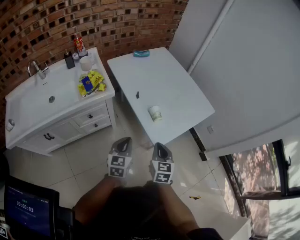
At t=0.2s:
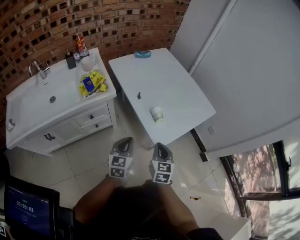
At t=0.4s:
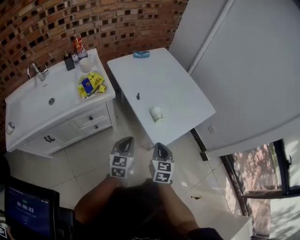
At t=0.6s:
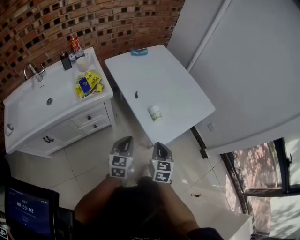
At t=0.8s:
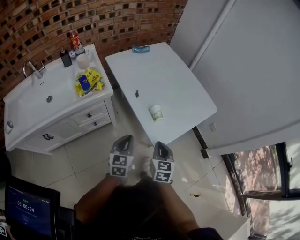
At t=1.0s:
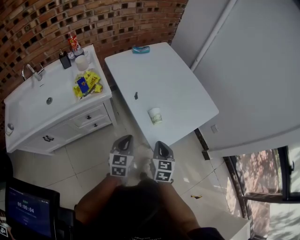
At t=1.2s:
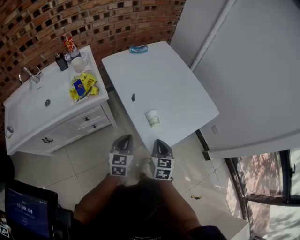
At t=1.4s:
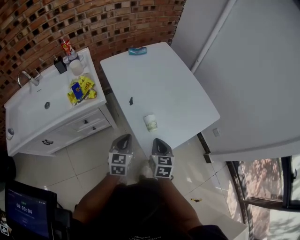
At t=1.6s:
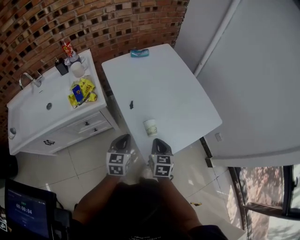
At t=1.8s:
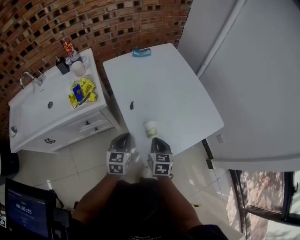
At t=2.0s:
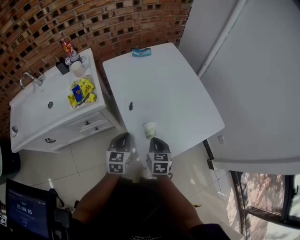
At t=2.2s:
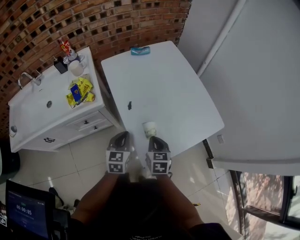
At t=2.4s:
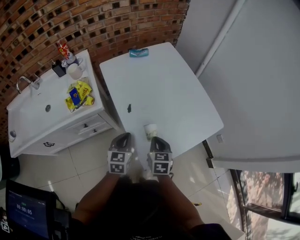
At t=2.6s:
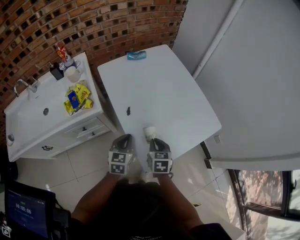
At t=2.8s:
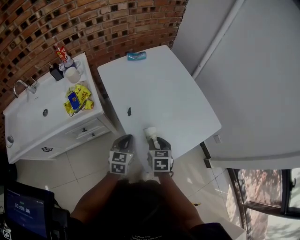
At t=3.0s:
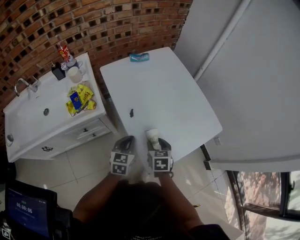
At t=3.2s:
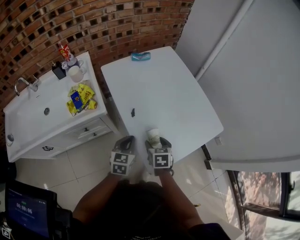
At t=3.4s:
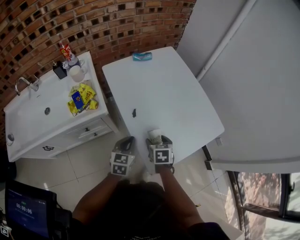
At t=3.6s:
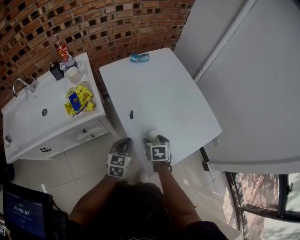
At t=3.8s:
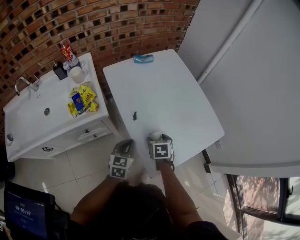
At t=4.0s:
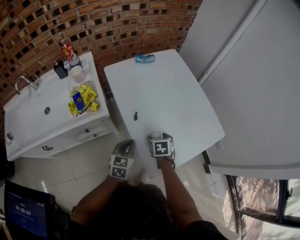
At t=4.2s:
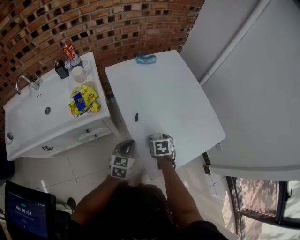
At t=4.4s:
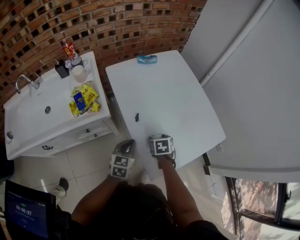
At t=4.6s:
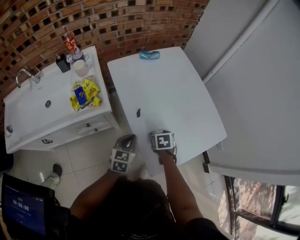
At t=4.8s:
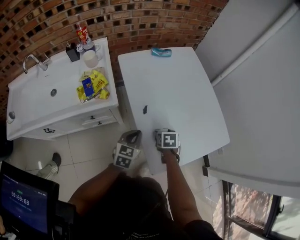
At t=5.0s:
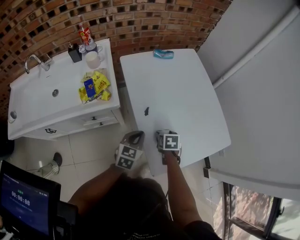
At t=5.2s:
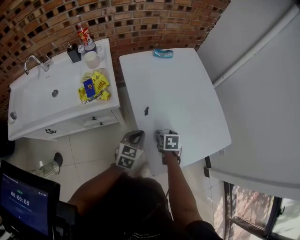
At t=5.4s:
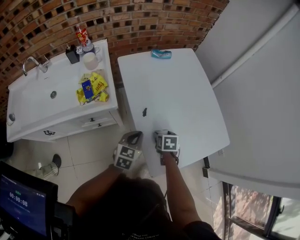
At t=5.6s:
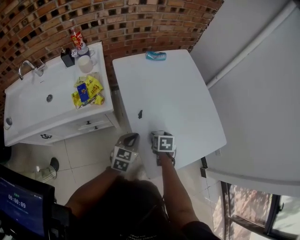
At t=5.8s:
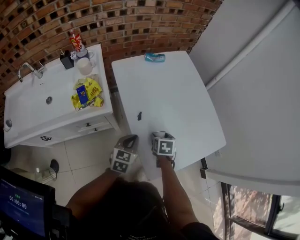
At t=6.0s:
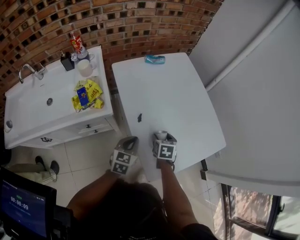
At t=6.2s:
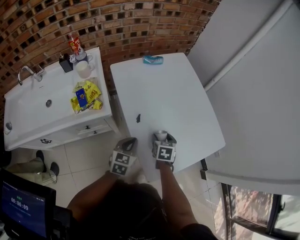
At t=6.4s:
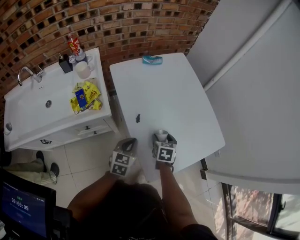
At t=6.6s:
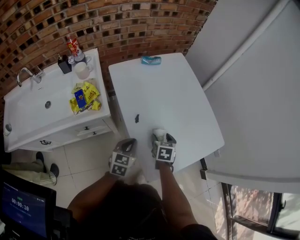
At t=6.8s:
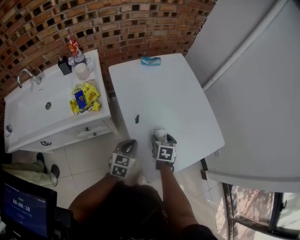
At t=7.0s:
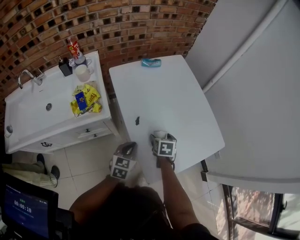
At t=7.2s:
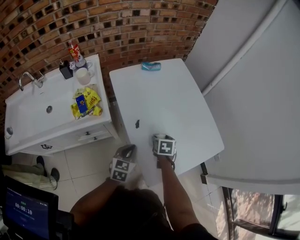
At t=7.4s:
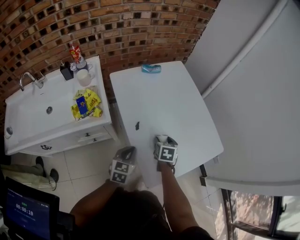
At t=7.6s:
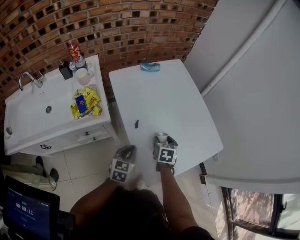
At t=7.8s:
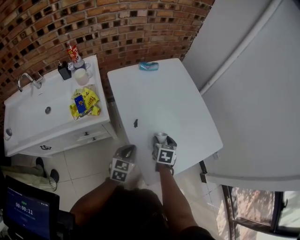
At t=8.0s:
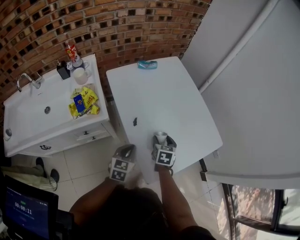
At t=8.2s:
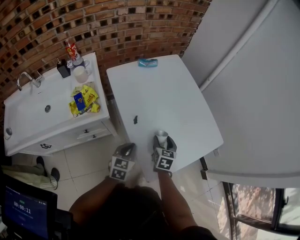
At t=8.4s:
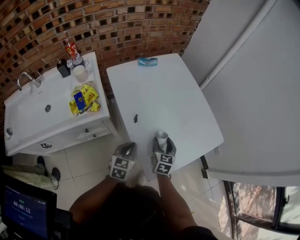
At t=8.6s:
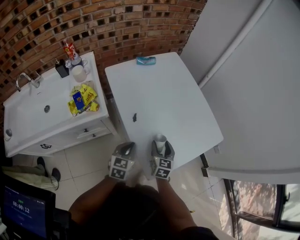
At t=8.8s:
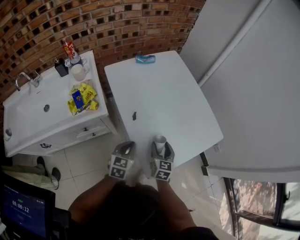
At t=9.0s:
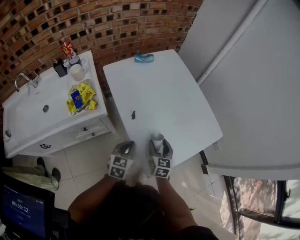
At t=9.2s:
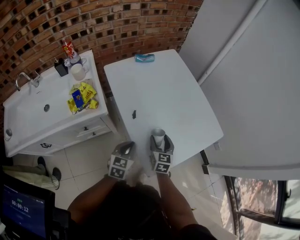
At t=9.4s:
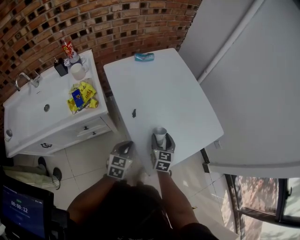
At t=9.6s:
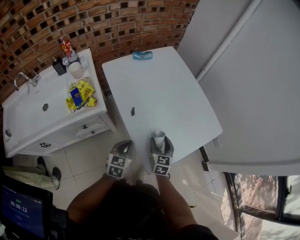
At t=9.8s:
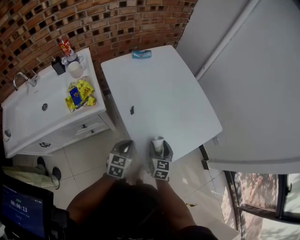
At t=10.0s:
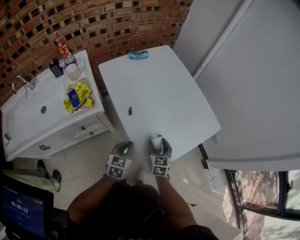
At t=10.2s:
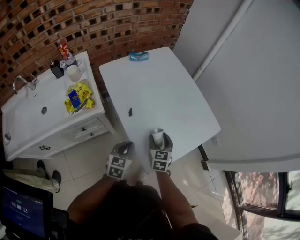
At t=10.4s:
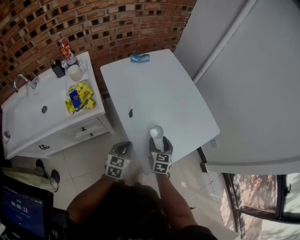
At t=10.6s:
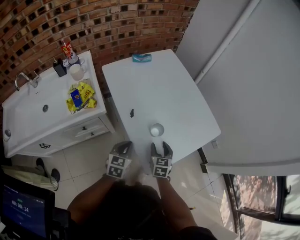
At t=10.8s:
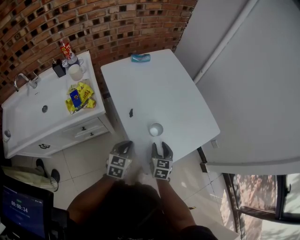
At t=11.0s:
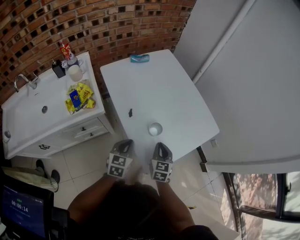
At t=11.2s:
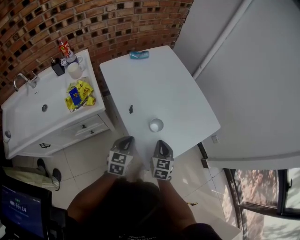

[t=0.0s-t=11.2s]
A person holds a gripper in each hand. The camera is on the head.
t=0.0s to t=1.6s: The two grippers go roughly 15 cm forward.
t=1.6s to t=3.2s: The left gripper changes place by about 5 cm. The right gripper shifts some 5 cm forward, and opens up.
t=3.2s to t=4.8s: The right gripper shifts by roughly 5 cm.
t=4.8s to t=6.4s: The right gripper shifts by some 5 cm, and rotates approximately 20 degrees.
t=6.4s to t=8.0s: The grippers move only a little.
t=8.0s to t=9.6s: The right gripper is displaced backward by about 5 cm.
t=9.6s to t=11.2s: The right gripper closes its fingers.

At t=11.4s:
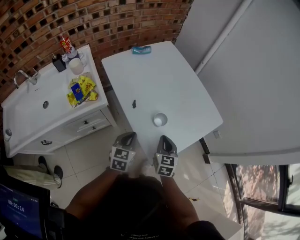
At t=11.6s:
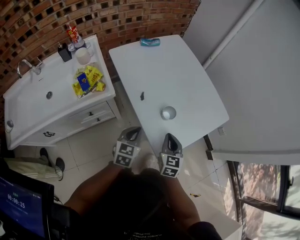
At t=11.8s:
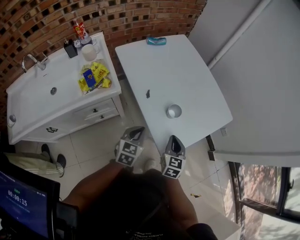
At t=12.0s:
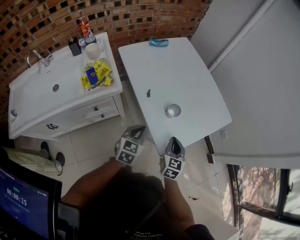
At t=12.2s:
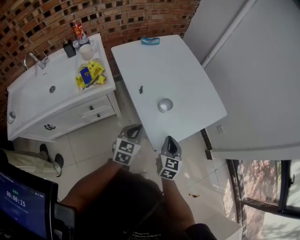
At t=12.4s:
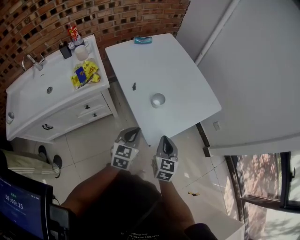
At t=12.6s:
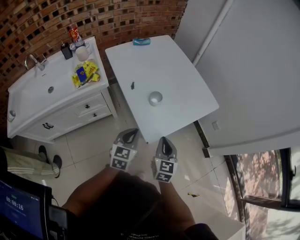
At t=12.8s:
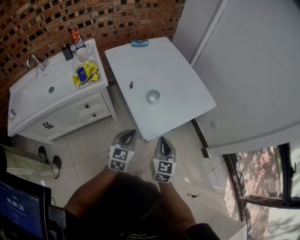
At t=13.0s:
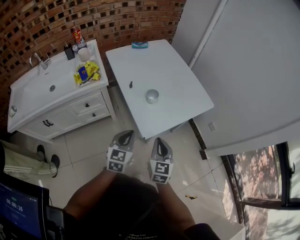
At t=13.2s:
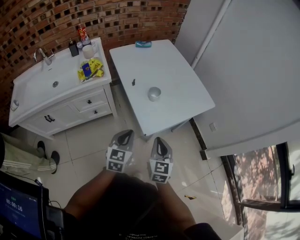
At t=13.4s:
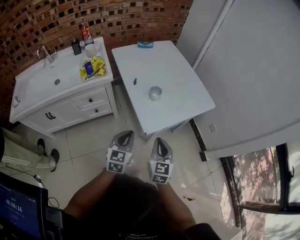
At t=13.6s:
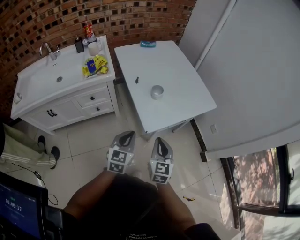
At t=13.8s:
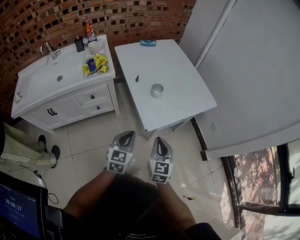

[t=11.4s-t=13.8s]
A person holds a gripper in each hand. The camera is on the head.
t=11.4s to t=12.6s: The grippers both shift backward and to the right by some 15 cm.
t=12.6s to t=13.8s: The grippers both shift backward by some 10 cm.

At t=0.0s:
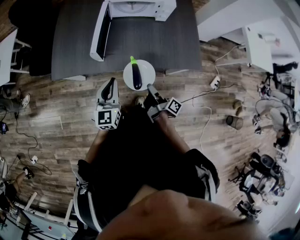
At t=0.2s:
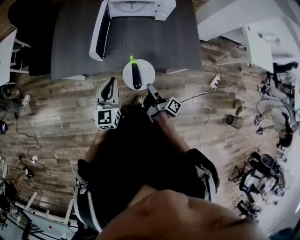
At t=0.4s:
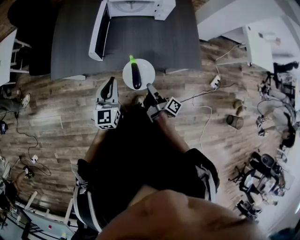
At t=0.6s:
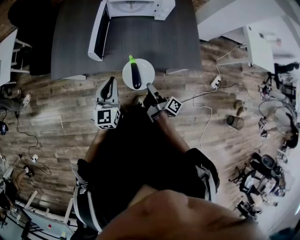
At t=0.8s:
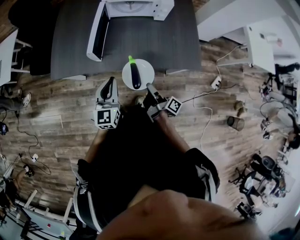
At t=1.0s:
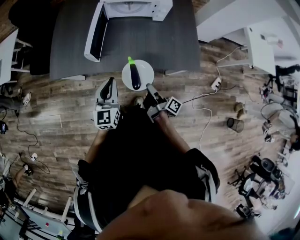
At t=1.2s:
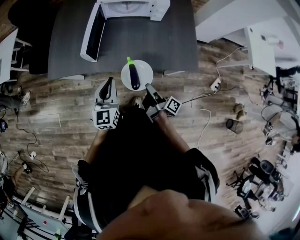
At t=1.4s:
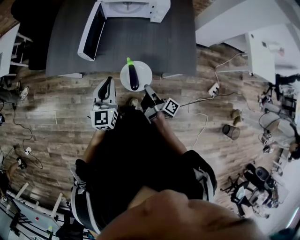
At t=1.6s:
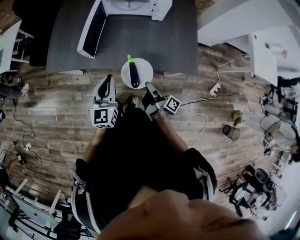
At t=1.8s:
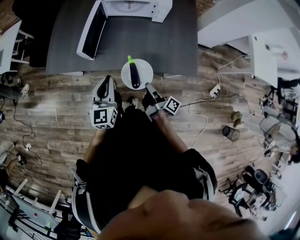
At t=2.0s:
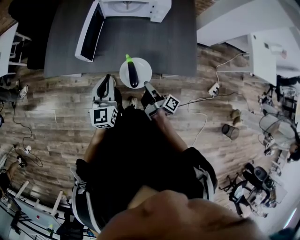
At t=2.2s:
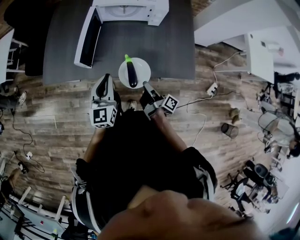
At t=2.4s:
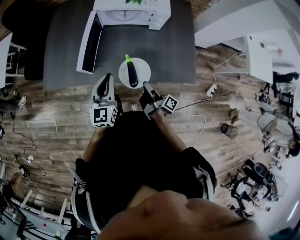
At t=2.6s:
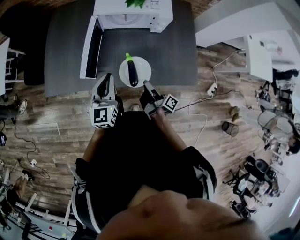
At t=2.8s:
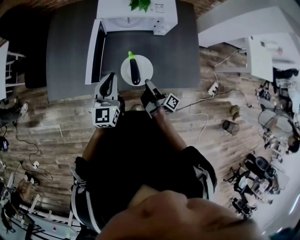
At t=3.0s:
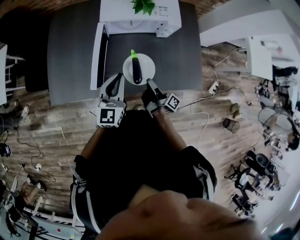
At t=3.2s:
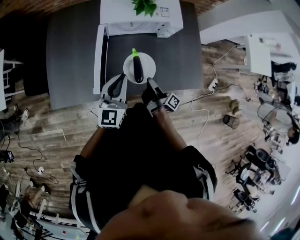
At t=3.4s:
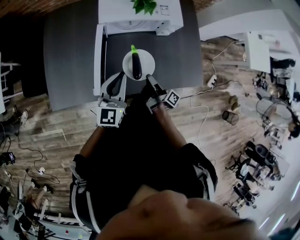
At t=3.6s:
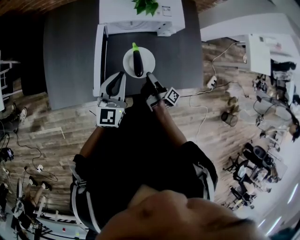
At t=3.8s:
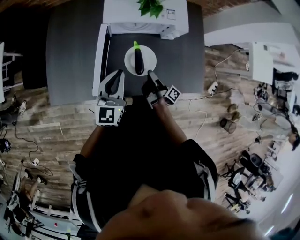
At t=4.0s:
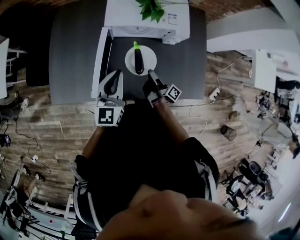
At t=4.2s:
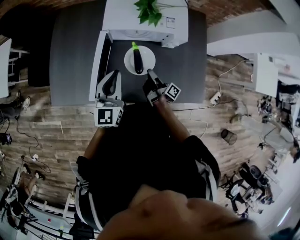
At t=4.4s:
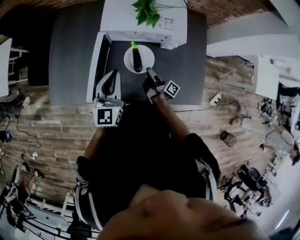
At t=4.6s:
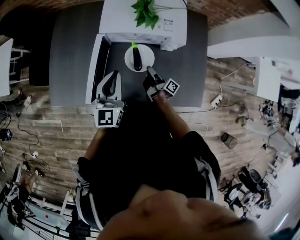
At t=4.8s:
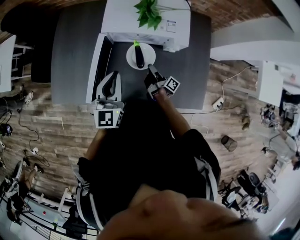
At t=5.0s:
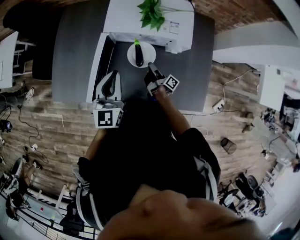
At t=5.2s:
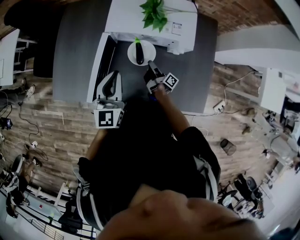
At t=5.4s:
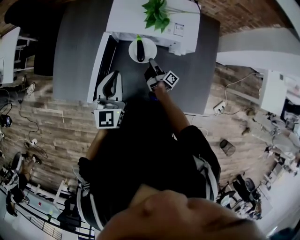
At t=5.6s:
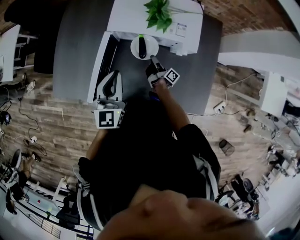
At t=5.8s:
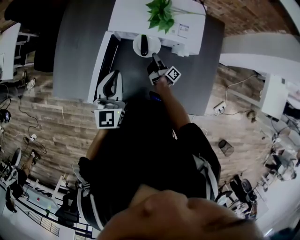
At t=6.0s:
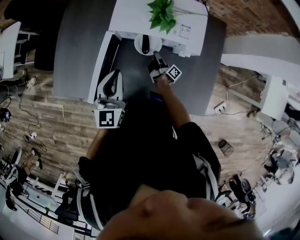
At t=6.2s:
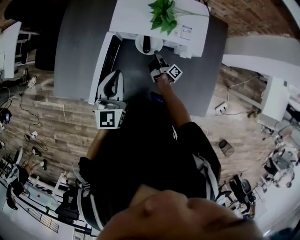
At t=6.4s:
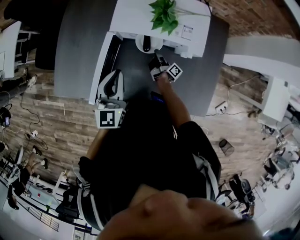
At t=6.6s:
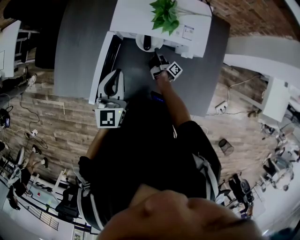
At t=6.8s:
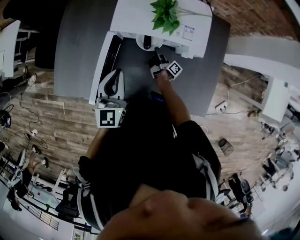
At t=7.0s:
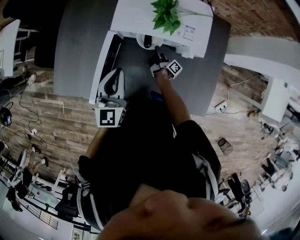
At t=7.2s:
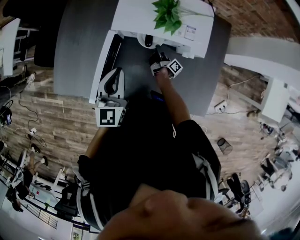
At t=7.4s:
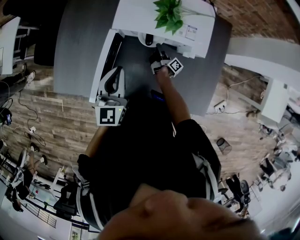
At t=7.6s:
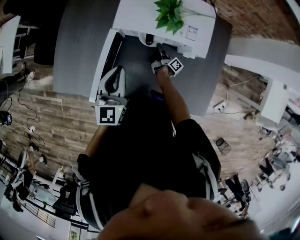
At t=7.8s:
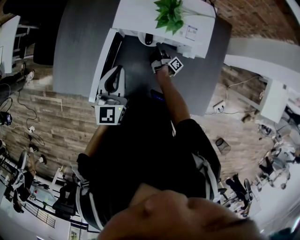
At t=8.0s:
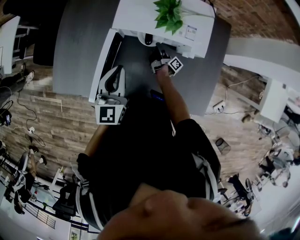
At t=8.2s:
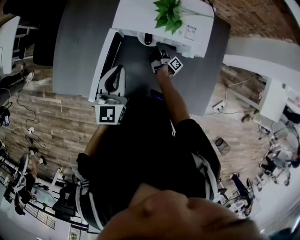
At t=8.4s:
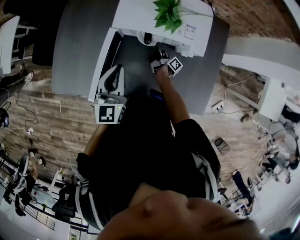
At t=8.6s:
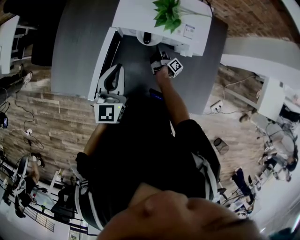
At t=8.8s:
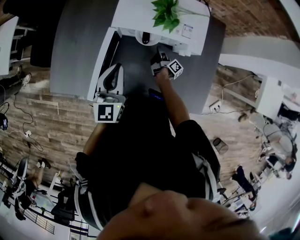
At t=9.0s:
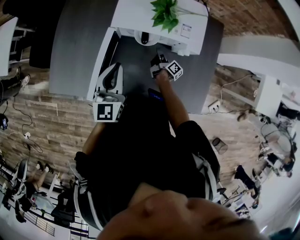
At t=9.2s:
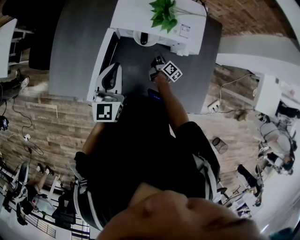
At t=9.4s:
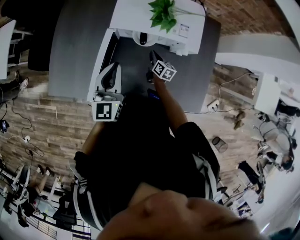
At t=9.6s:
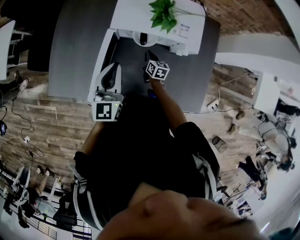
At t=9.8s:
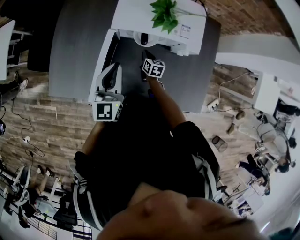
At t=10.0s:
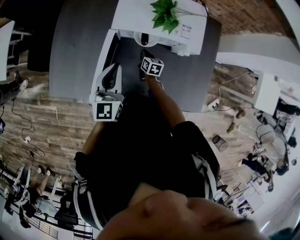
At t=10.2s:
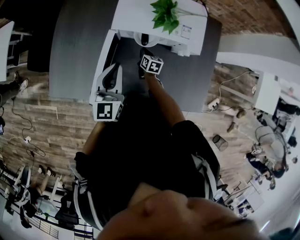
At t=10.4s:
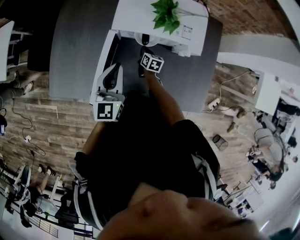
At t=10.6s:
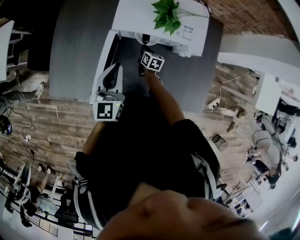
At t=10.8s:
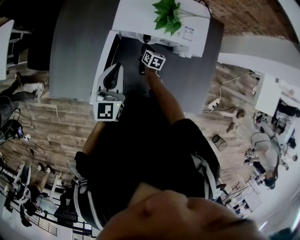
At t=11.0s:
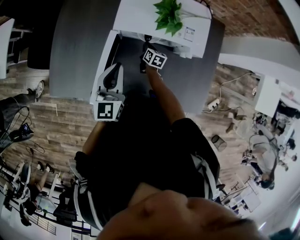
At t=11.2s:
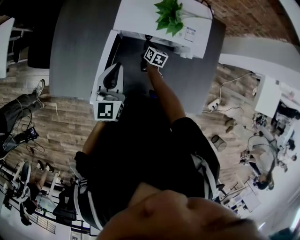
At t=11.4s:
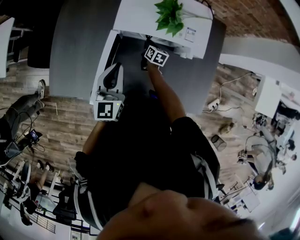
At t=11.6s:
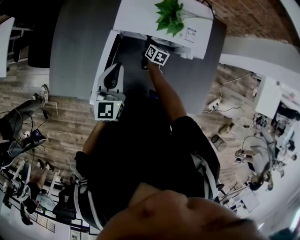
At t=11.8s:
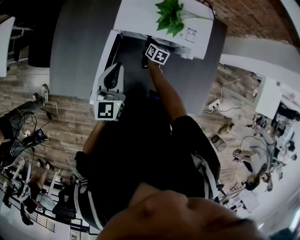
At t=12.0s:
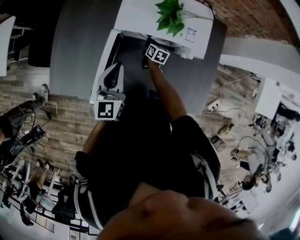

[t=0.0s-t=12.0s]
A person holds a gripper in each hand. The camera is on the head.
t=0.0s to t=1.6s: The left gripper changes place by roughly 10 cm.
t=1.6s to t=3.0s: The left gripper changes place by some 20 cm.
t=3.0s to t=4.4s: The left gripper shifts by some 10 cm.
